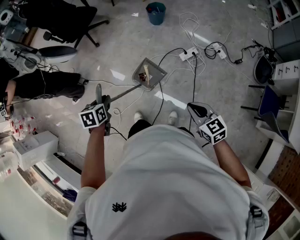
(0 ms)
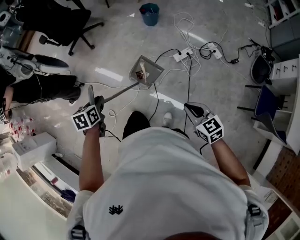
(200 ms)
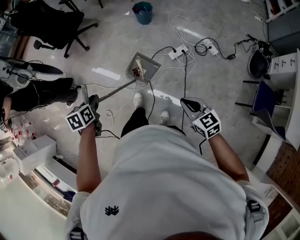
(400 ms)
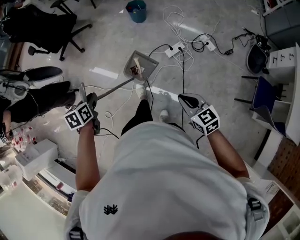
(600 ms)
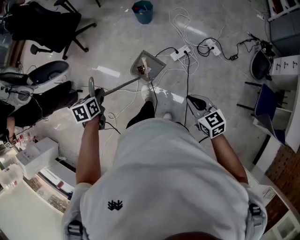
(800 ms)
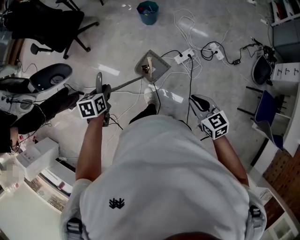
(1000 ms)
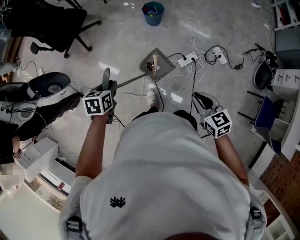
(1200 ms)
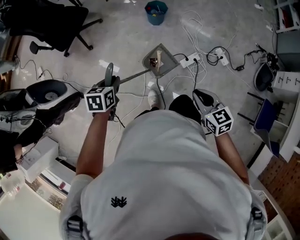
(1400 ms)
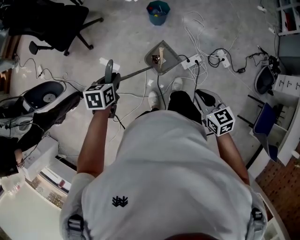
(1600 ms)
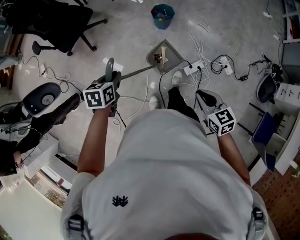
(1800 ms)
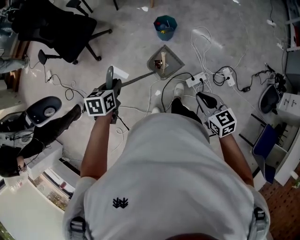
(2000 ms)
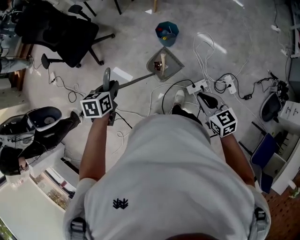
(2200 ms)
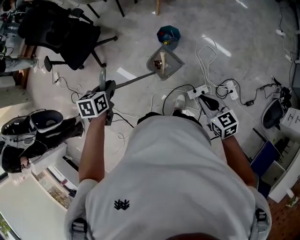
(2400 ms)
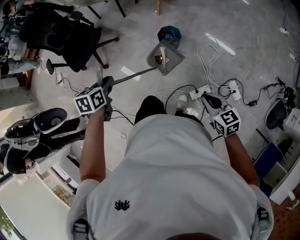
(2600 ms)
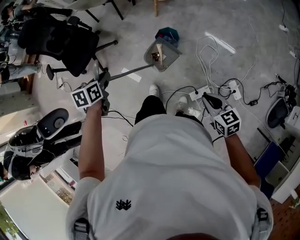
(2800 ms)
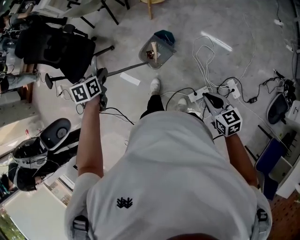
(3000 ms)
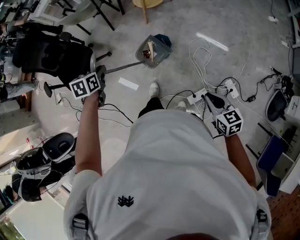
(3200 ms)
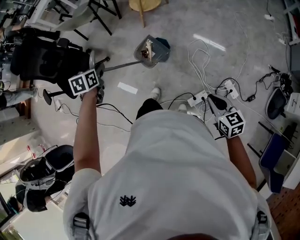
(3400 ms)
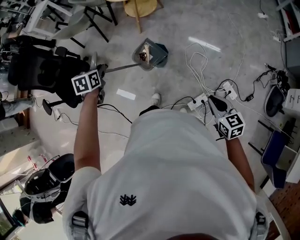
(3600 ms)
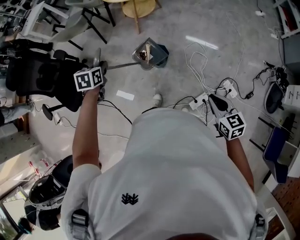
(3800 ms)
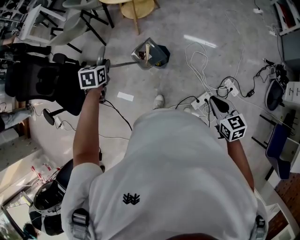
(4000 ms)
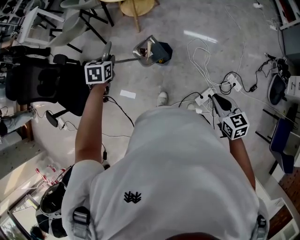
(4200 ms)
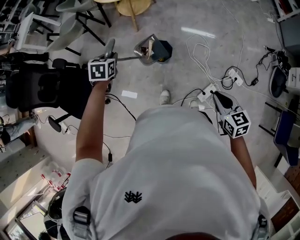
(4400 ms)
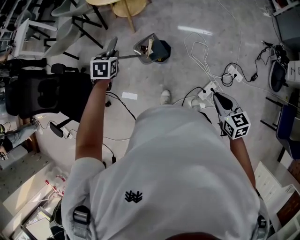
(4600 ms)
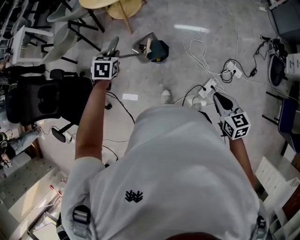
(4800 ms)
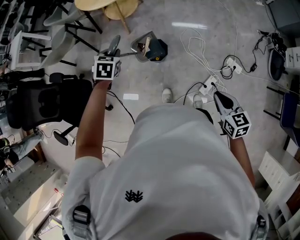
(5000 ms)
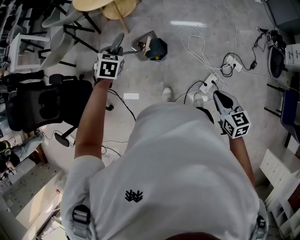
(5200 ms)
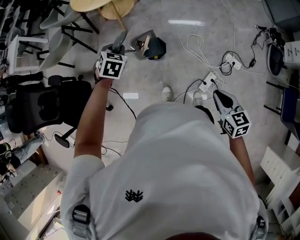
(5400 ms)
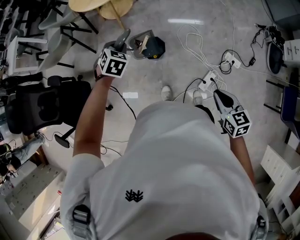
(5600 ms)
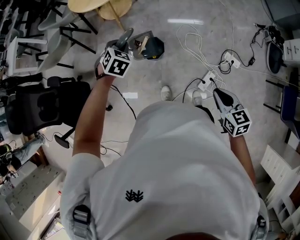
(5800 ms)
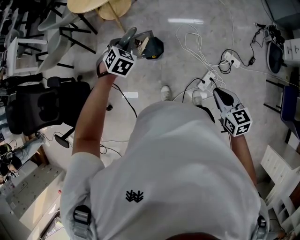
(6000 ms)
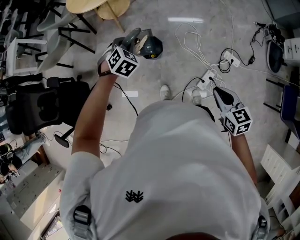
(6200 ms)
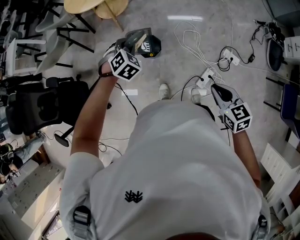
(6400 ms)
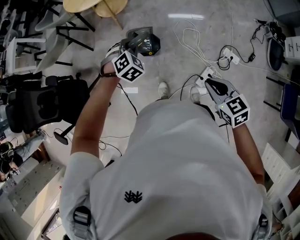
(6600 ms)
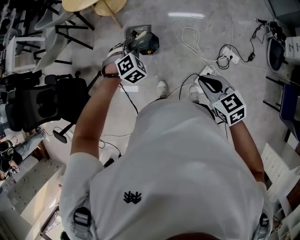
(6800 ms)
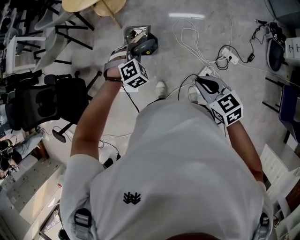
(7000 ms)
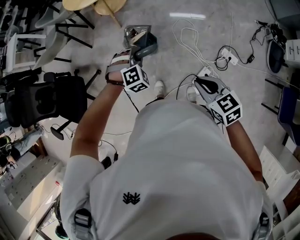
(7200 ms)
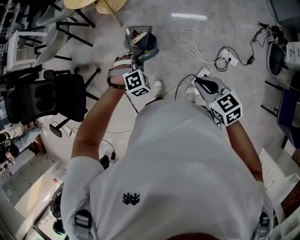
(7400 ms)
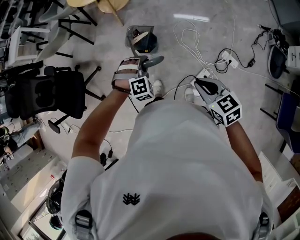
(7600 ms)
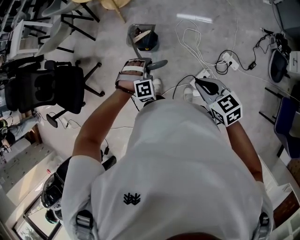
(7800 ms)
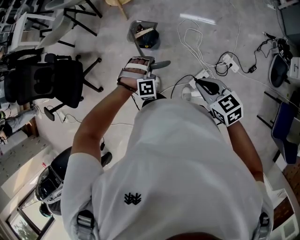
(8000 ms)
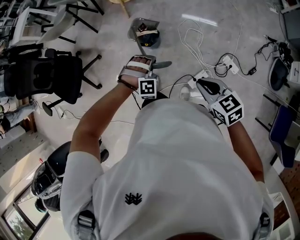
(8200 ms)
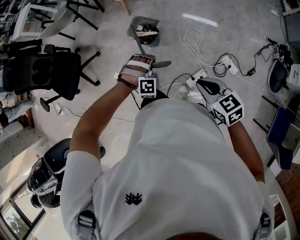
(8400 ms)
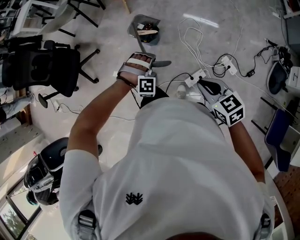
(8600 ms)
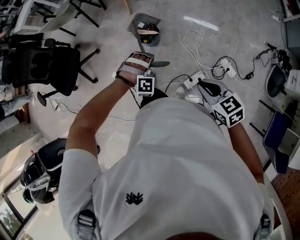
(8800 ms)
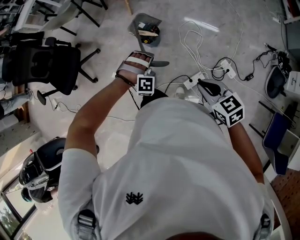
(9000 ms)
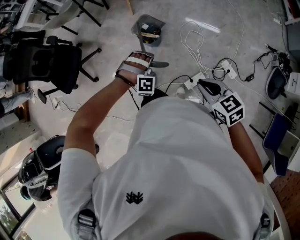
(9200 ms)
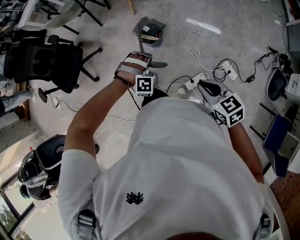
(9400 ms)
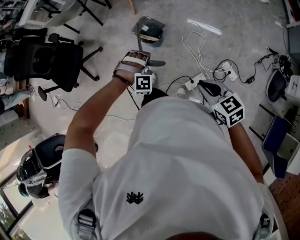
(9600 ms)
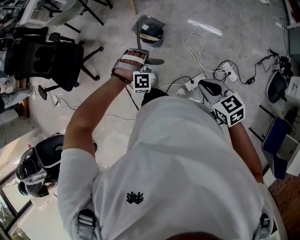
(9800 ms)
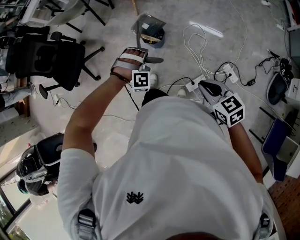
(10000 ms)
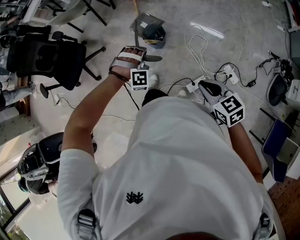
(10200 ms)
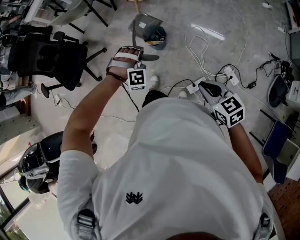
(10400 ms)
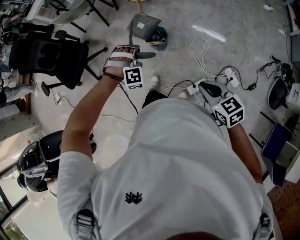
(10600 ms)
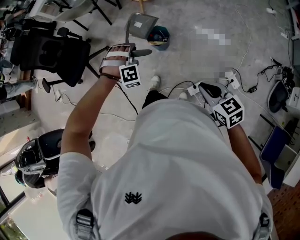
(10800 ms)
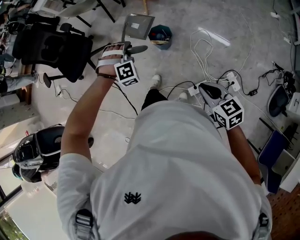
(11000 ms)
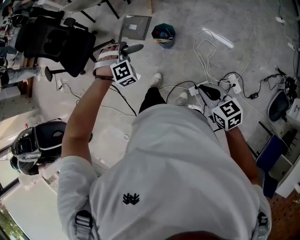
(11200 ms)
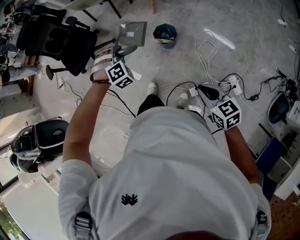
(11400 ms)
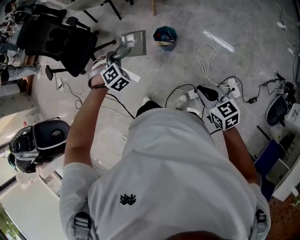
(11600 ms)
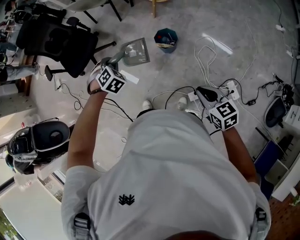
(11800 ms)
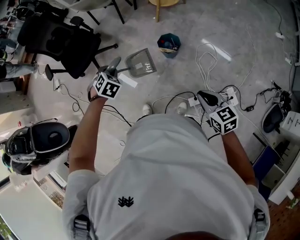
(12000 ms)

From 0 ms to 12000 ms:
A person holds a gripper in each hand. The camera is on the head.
From 0 ms to 1600 ms: Both grippers travel together forward, about 35 cm.
From 1600 ms to 3000 ms: The left gripper moves forward, approximately 35 cm. Meanwhile the right gripper heads forward and to the right, covering about 35 cm.
From 3000 ms to 4400 ms: The left gripper is displaced forward by some 25 cm, and rotates about 30 degrees; the right gripper goes approximately 10 cm to the left and forward, and rotates roughly 20 degrees.
From 4400 ms to 6000 ms: The left gripper goes about 15 cm to the right, and rotates around the line of its fingers by approximately 40 degrees, clockwise from behind.
From 6000 ms to 7600 ms: The left gripper heads backward and to the right, covering some 20 cm, and changes its angle by some 40 degrees, while the right gripper turns by about 20 degrees.
From 7600 ms to 9000 ms: The grippers both shift backward by approximately 5 cm.
From 9000 ms to 10400 ms: The left gripper travels to the left by approximately 5 cm.
From 10400 ms to 12000 ms: The left gripper heads to the left, covering approximately 25 cm, and rotates around the line of its fingers by about 70 degrees, counterclockwise from behind, while the right gripper shifts some 5 cm forward.

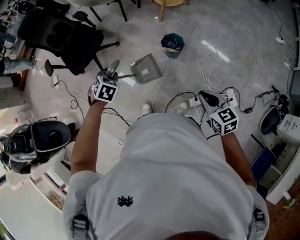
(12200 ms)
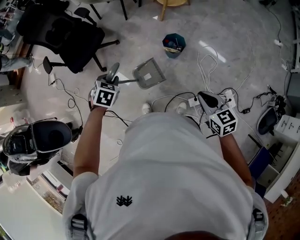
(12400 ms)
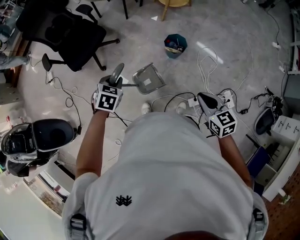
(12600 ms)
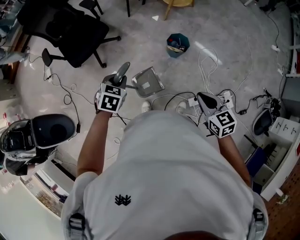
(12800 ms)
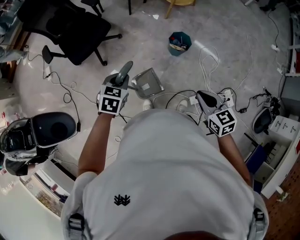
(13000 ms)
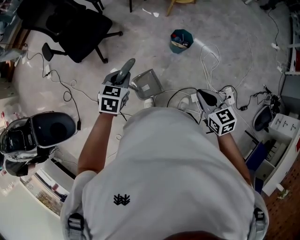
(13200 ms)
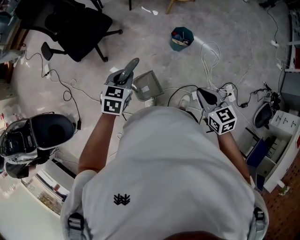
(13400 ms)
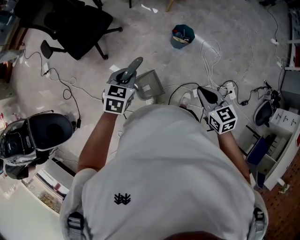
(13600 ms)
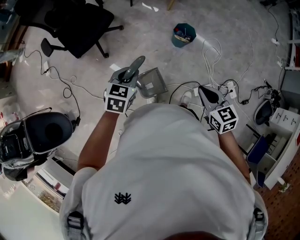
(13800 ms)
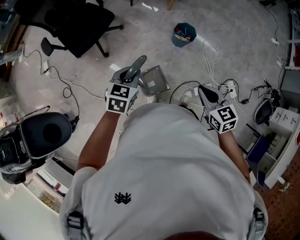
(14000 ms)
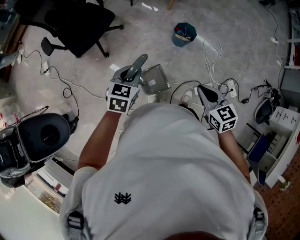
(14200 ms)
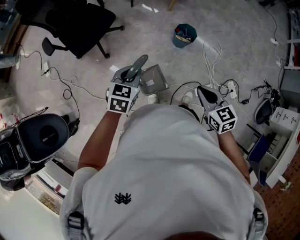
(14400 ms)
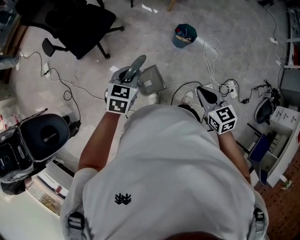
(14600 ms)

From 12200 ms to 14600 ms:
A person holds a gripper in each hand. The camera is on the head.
From 12200 ms to 13400 ms: The left gripper is displaced to the left by approximately 10 cm, and turns by roughly 30 degrees, while the right gripper travels to the left by approximately 20 cm.
From 13400 ms to 14600 ms: The right gripper travels to the left by about 5 cm.

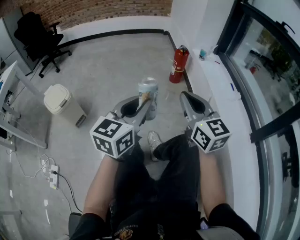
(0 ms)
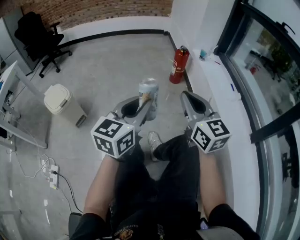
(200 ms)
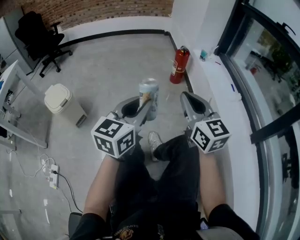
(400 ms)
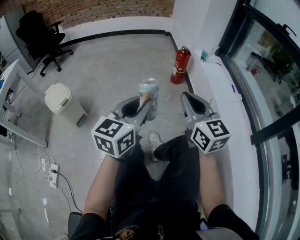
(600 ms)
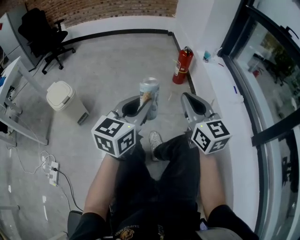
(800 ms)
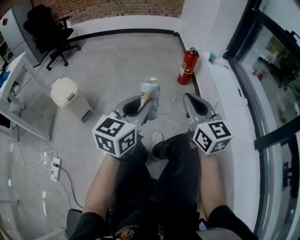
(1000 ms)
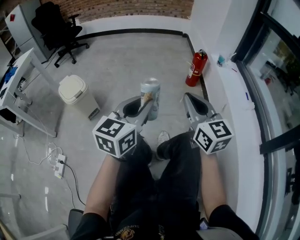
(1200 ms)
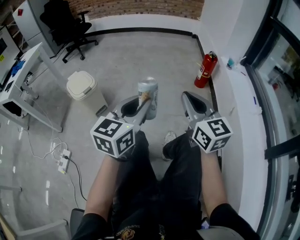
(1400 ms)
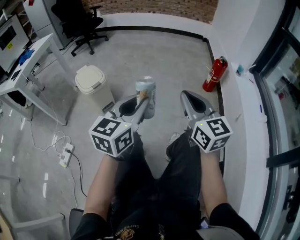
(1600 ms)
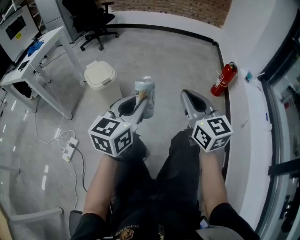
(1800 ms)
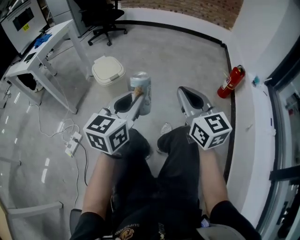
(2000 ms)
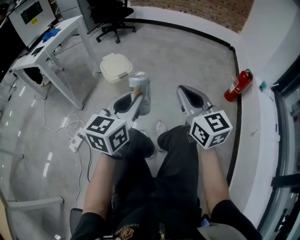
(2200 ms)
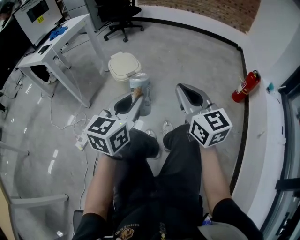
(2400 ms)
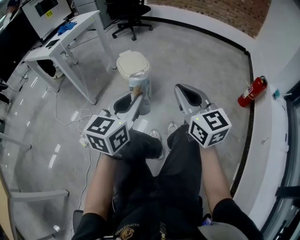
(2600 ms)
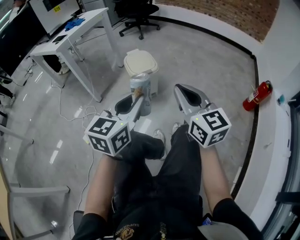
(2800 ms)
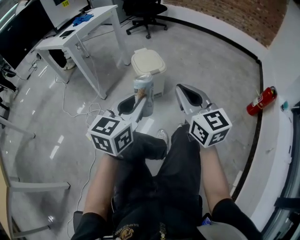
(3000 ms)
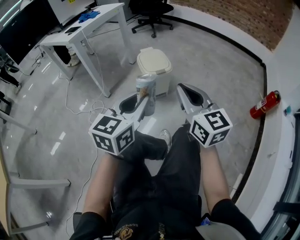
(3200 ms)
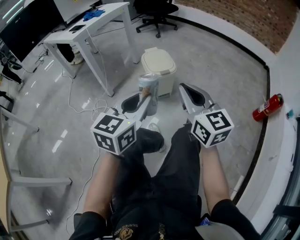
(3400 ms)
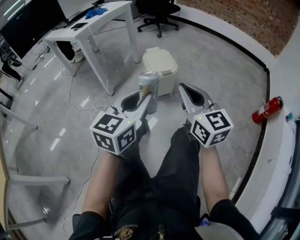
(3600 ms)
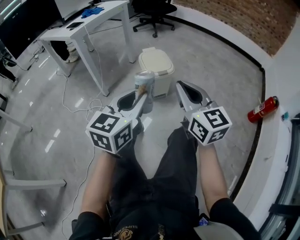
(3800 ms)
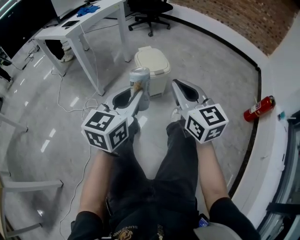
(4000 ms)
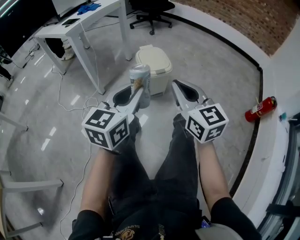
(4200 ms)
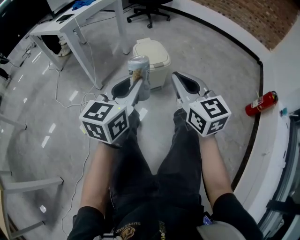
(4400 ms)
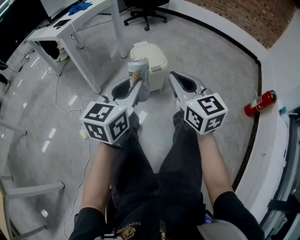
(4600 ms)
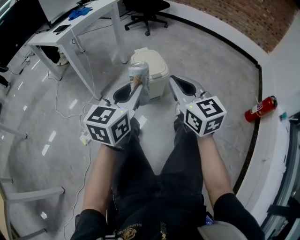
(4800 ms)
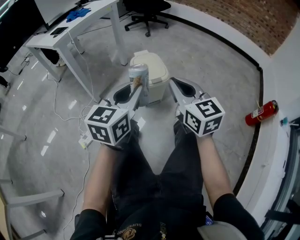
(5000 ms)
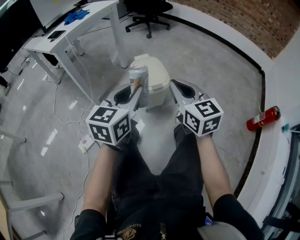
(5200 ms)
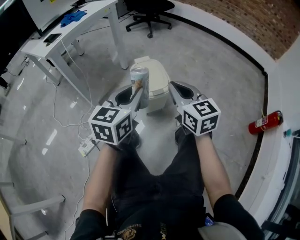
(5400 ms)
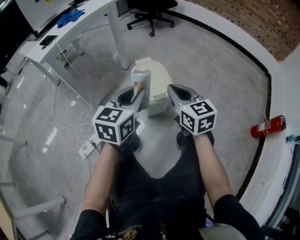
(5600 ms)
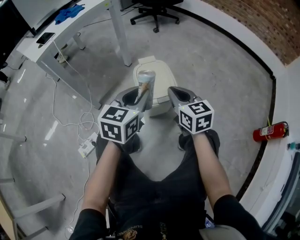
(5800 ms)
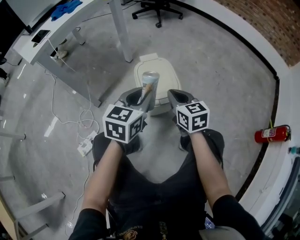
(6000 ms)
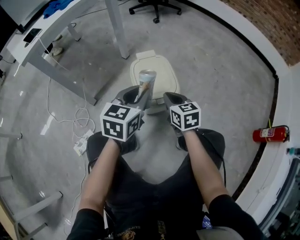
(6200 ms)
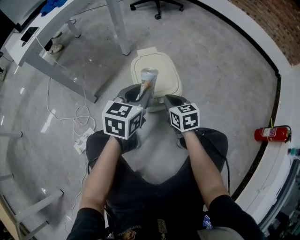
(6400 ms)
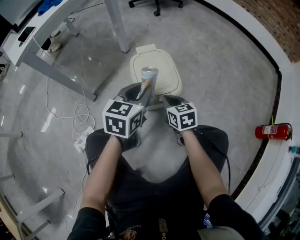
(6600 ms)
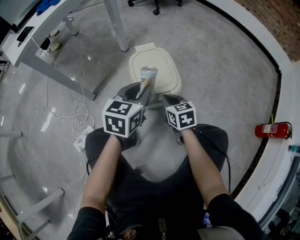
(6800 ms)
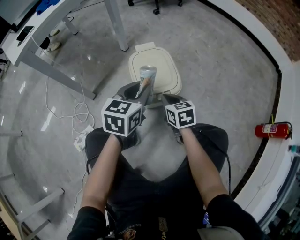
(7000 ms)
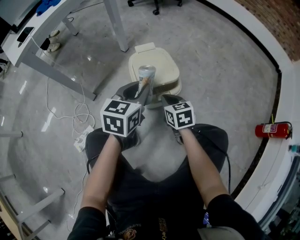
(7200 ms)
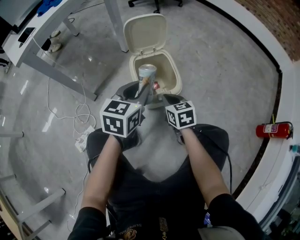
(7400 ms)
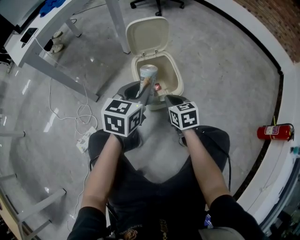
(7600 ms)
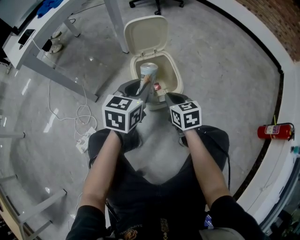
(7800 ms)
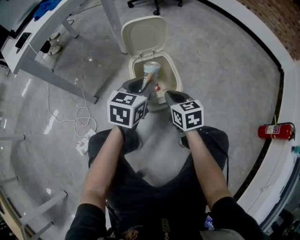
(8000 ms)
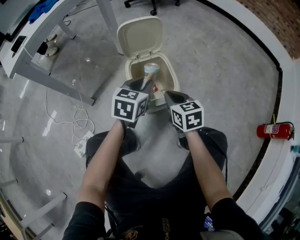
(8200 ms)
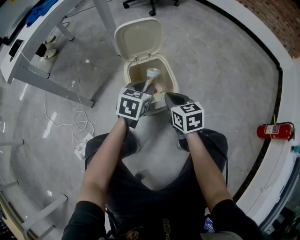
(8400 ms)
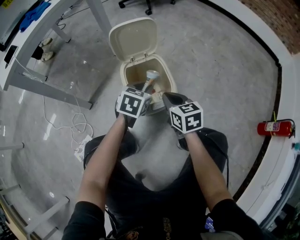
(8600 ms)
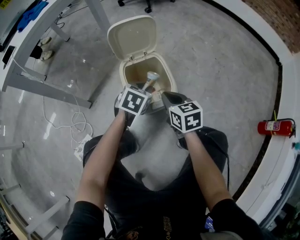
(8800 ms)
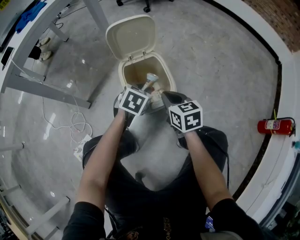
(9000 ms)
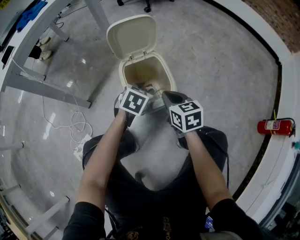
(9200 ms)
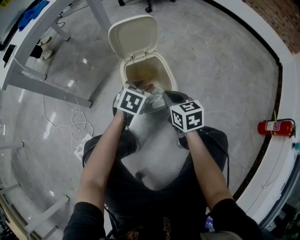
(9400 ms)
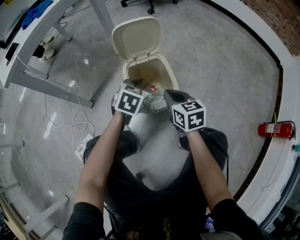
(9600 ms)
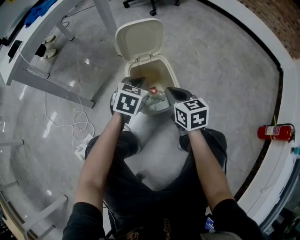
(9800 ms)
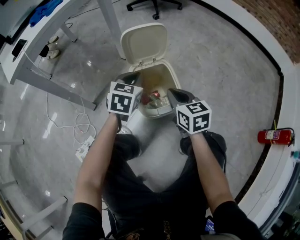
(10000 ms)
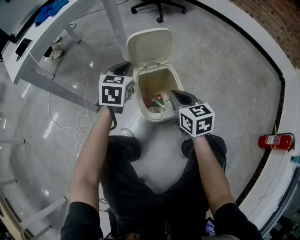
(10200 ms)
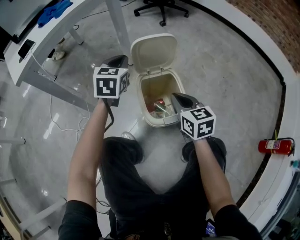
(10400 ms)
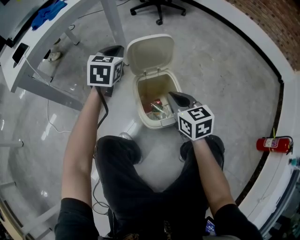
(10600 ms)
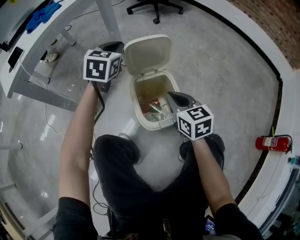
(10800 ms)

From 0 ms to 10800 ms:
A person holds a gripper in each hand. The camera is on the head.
From 0 ms to 1600 ms: The two grippers go roughly 15 cm to the left.
From 1600 ms to 3000 ms: Both grippers move to the left, some 25 cm. The left gripper changes its angle by some 20 degrees. Meanwhile the right gripper rotates about 30 degrees.
From 3000 ms to 4600 ms: The left gripper goes roughly 10 cm forward, while the right gripper shifts some 10 cm forward and to the left.
From 4600 ms to 6200 ms: Both grippers travel together forward and downward, approximately 35 cm. The right gripper turns by roughly 30 degrees.
From 7800 ms to 9200 ms: The left gripper goes roughly 15 cm downward and forward, rotates approximately 30 degrees, and opens.
From 9200 ms to 10800 ms: The left gripper moves forward, upward and to the left, about 30 cm, turns by approximately 30 degrees, and closes, while the right gripper heads upward and forward, covering roughly 10 cm.
